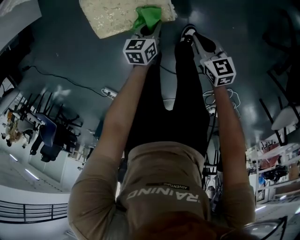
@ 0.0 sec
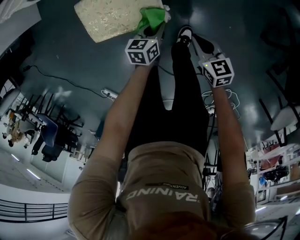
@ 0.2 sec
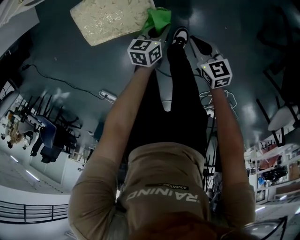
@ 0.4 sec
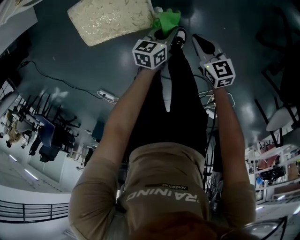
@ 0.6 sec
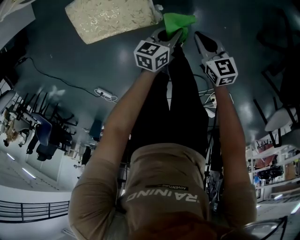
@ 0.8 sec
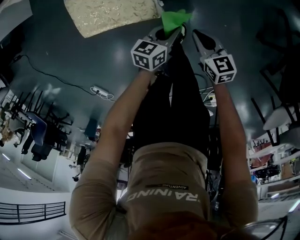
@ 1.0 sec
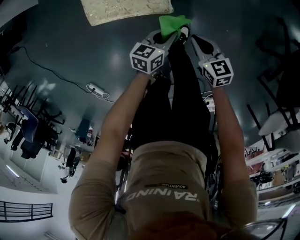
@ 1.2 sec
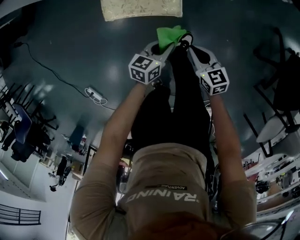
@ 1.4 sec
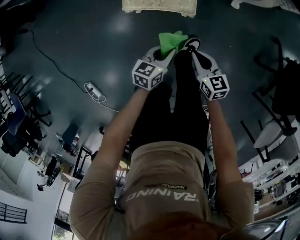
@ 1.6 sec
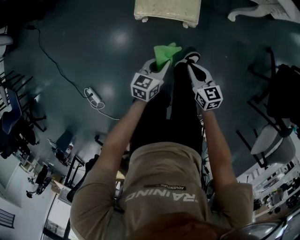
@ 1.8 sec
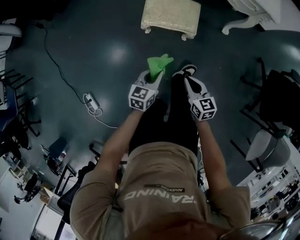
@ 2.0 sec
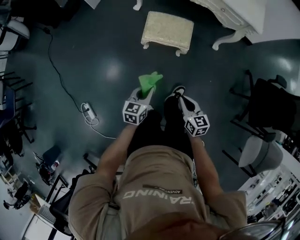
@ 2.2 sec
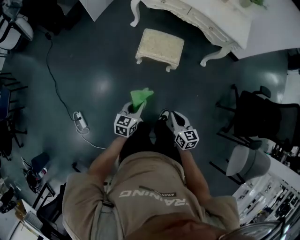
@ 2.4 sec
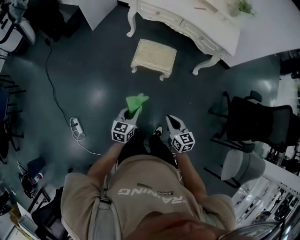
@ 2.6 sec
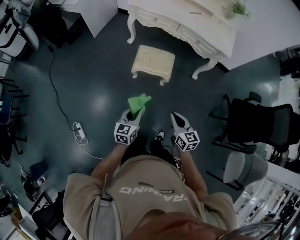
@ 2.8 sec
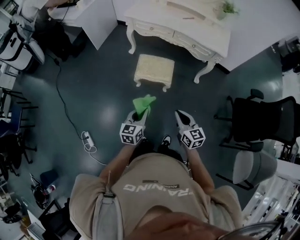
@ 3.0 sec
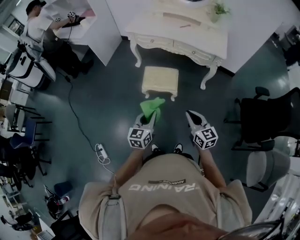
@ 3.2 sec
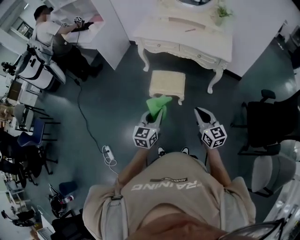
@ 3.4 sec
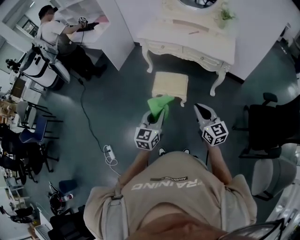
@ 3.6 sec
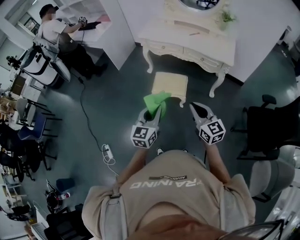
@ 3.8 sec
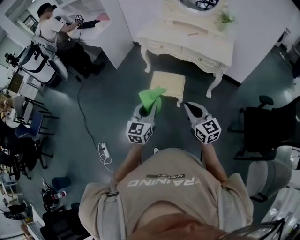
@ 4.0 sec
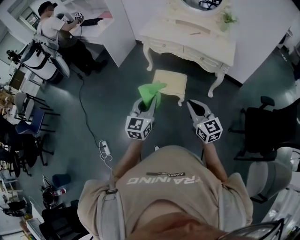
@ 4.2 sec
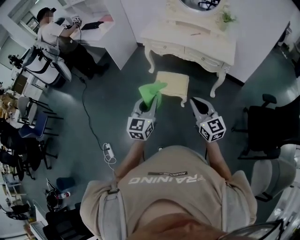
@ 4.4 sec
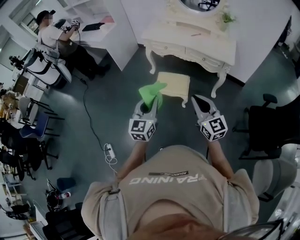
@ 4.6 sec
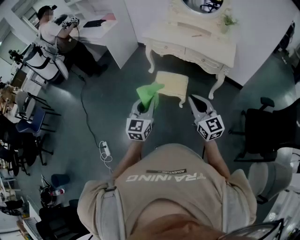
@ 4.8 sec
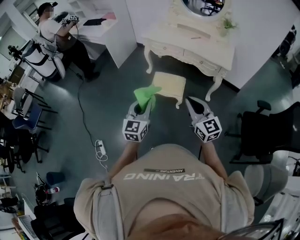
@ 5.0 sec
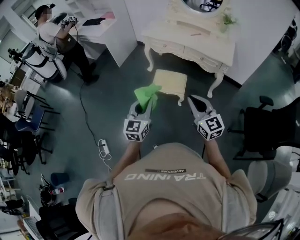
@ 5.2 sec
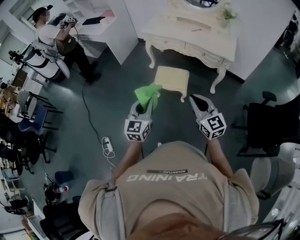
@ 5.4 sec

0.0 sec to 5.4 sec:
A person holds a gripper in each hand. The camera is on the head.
0.0 sec to 1.4 sec: The right gripper is displaced backward and to the left by approximately 15 cm, while the left gripper goes roughly 15 cm backward and upward.
1.4 sec to 2.8 sec: The left gripper travels upward, backward and to the left by about 60 cm, and changes its angle by roughly 30 degrees. Meanwhile the right gripper travels upward and backward by about 50 cm.
2.8 sec to 4.0 sec: Both grippers move upward, approximately 20 cm. The right gripper turns by about 20 degrees, while the left gripper rotates some 20 degrees.
4.0 sec to 5.4 sec: The left gripper changes place by some 5 cm.

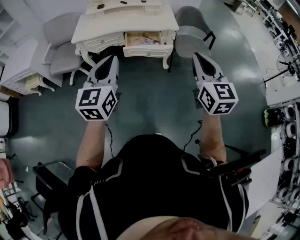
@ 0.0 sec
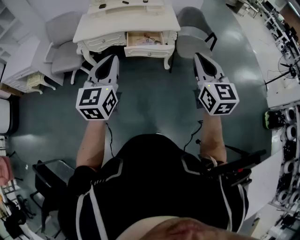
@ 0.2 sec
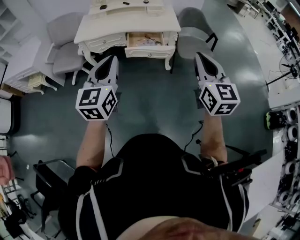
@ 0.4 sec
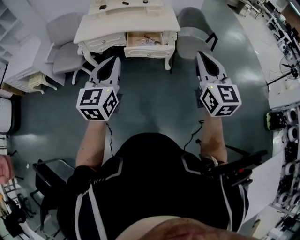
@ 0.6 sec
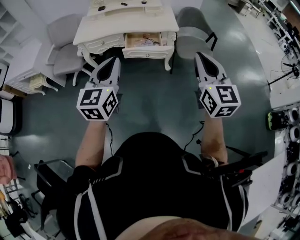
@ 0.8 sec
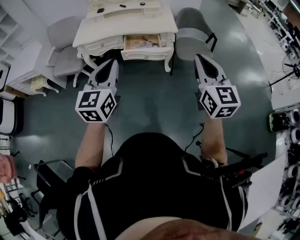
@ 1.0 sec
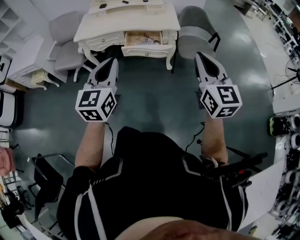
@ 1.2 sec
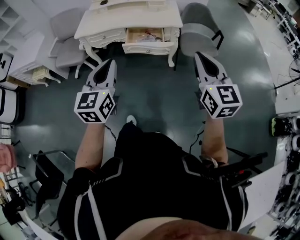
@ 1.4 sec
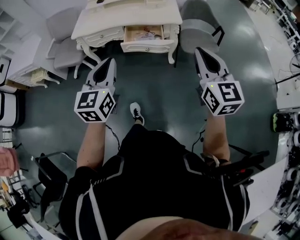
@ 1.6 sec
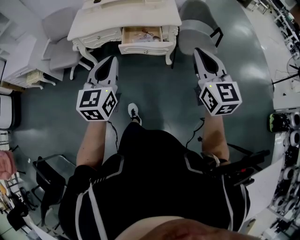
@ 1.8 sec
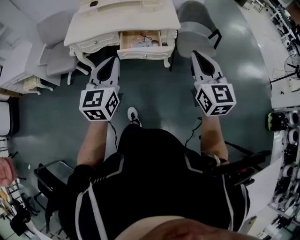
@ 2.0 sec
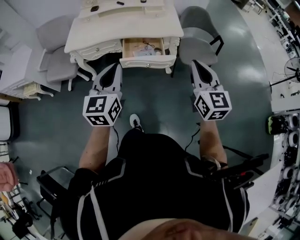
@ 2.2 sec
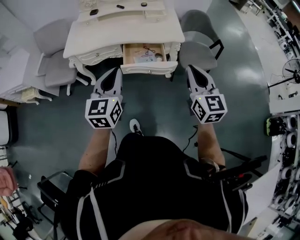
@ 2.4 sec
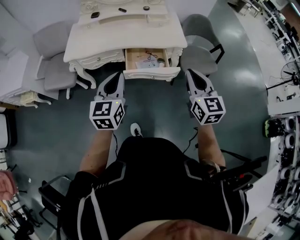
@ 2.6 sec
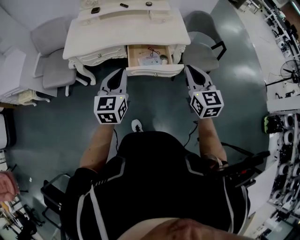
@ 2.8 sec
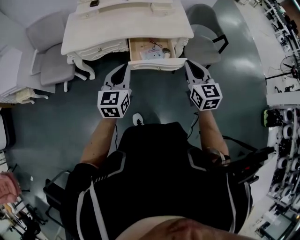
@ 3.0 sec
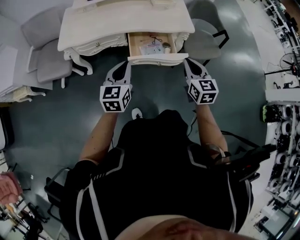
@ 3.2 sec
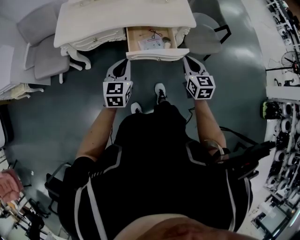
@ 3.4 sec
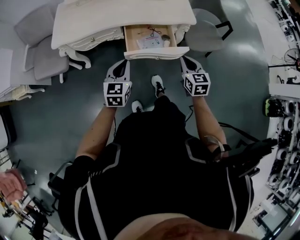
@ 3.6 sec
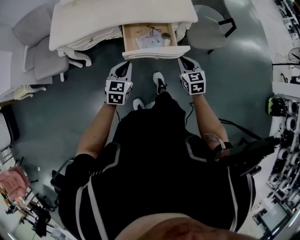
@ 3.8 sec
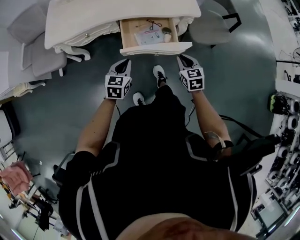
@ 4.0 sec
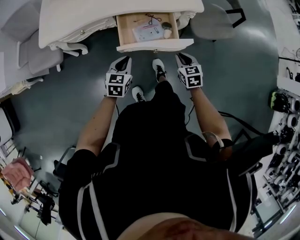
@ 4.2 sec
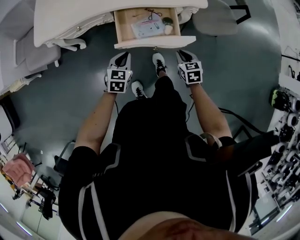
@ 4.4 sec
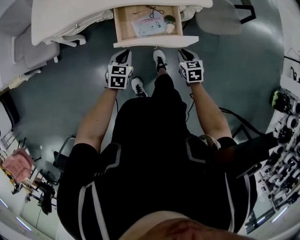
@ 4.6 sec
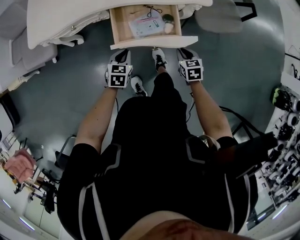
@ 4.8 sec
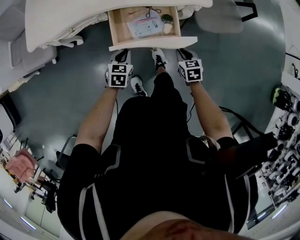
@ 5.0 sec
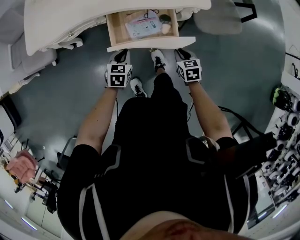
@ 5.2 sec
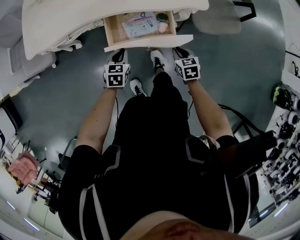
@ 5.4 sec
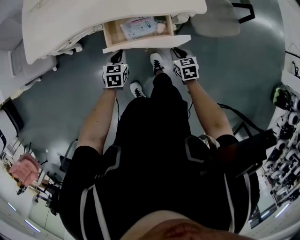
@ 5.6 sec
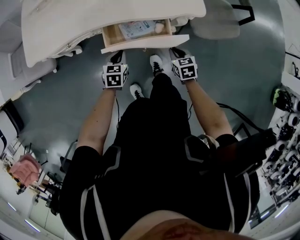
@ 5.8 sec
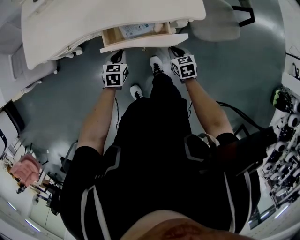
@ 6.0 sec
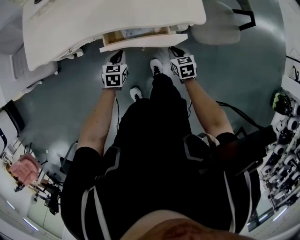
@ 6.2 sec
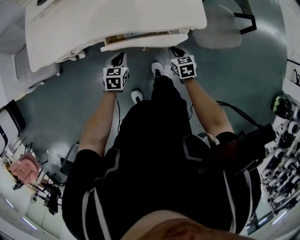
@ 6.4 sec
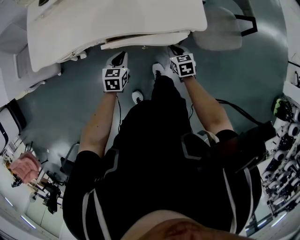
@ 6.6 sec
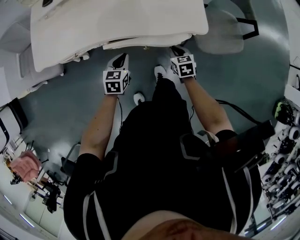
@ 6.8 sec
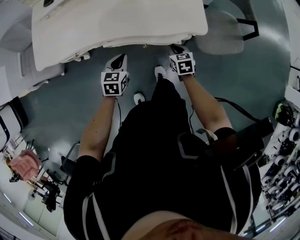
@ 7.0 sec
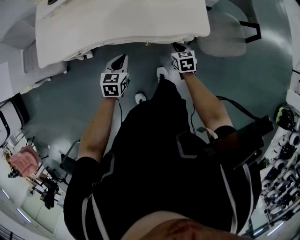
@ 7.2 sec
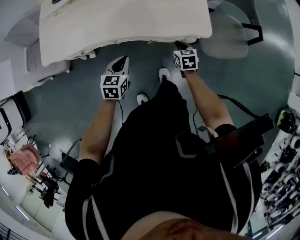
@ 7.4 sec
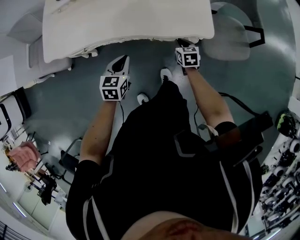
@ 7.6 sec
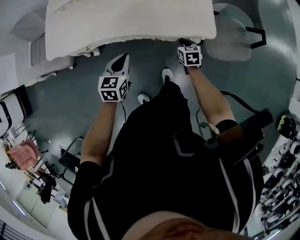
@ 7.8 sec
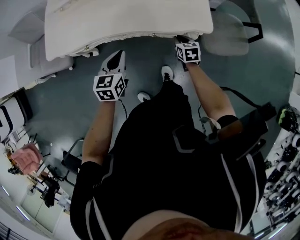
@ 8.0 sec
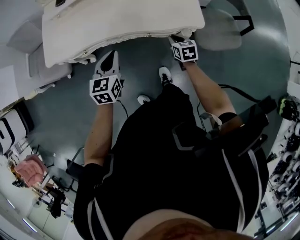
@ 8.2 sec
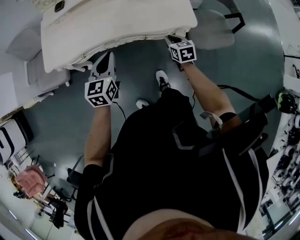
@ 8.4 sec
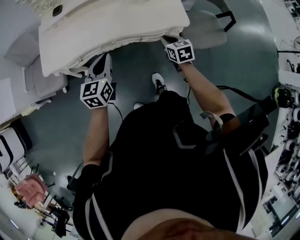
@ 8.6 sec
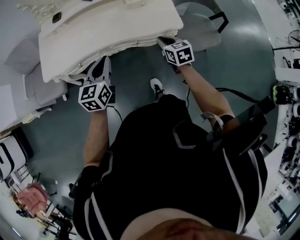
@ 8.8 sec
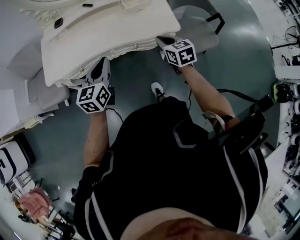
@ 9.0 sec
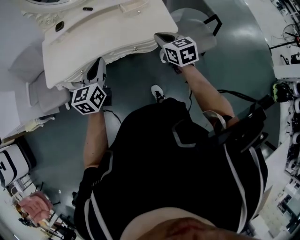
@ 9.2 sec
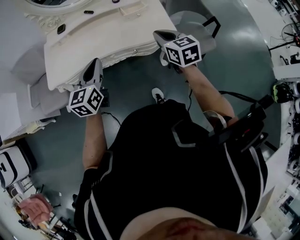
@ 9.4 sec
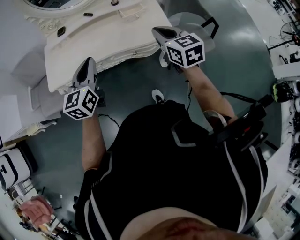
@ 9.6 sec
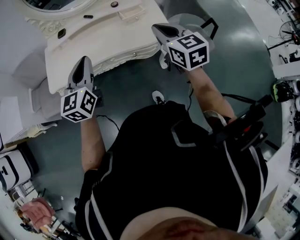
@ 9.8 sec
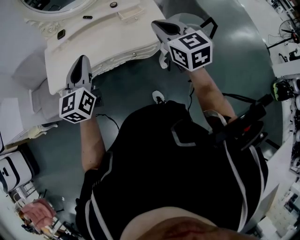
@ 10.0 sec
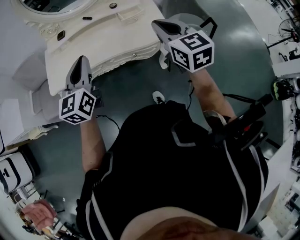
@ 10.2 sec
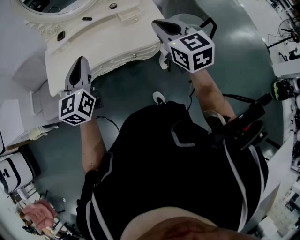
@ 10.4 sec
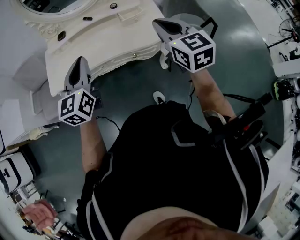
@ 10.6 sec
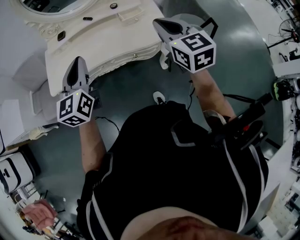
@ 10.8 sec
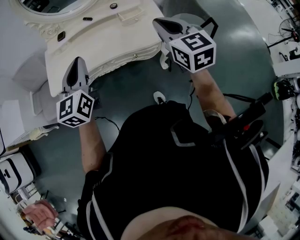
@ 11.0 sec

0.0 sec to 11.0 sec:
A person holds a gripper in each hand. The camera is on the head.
0.0 sec to 1.6 sec: Both grippers move to the right, some 5 cm.
1.6 sec to 3.2 sec: Both grippers travel together forward, downward and to the left, about 35 cm. The right gripper changes its angle by some 20 degrees.
3.2 sec to 4.8 sec: The grippers both shift downward by about 30 cm. The left gripper angles its fingers downward, by about 30 degrees; the right gripper tips its fingers downward by some 30 degrees.
4.8 sec to 6.2 sec: The two grippers go approximately 10 cm forward.
6.2 sec to 7.8 sec: The right gripper is displaced forward by roughly 10 cm. The left gripper shifts approximately 15 cm upward.
7.8 sec to 9.4 sec: The left gripper heads upward, covering roughly 20 cm, and changes its angle by about 30 degrees, while the right gripper shifts roughly 35 cm upward, and turns by some 30 degrees.
9.4 sec to 11.0 sec: Both grippers move upward, about 10 cm.

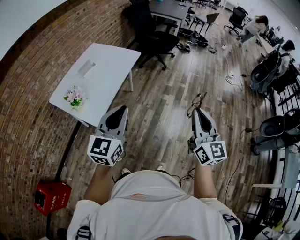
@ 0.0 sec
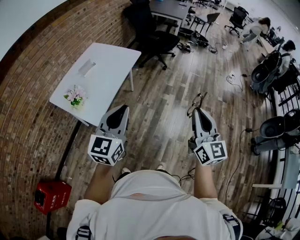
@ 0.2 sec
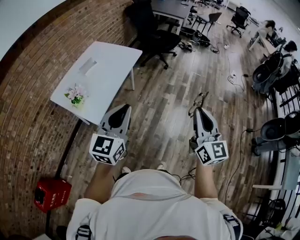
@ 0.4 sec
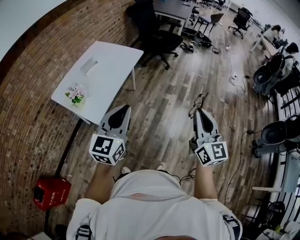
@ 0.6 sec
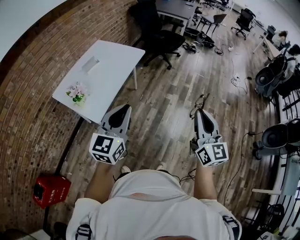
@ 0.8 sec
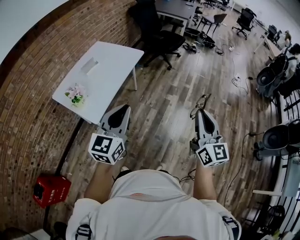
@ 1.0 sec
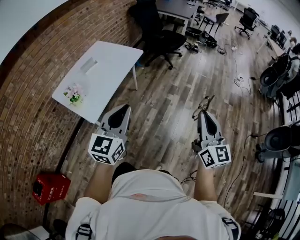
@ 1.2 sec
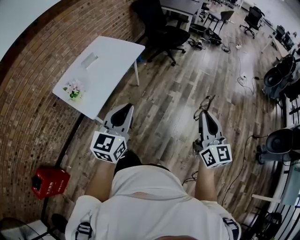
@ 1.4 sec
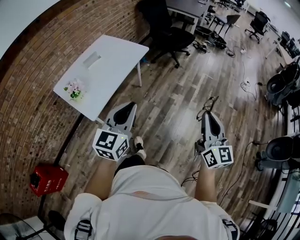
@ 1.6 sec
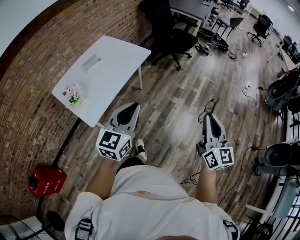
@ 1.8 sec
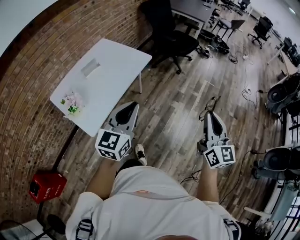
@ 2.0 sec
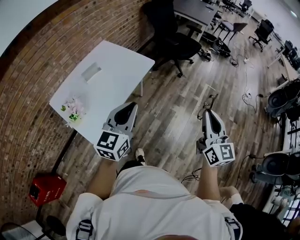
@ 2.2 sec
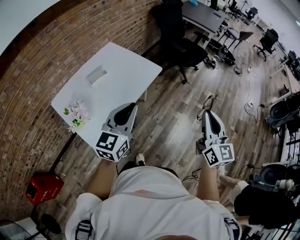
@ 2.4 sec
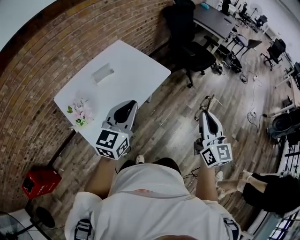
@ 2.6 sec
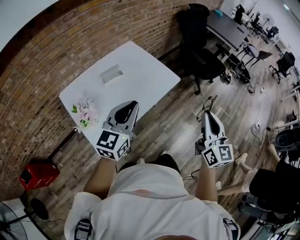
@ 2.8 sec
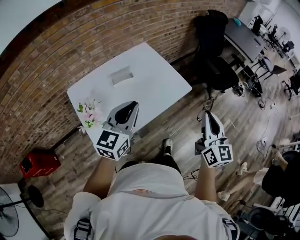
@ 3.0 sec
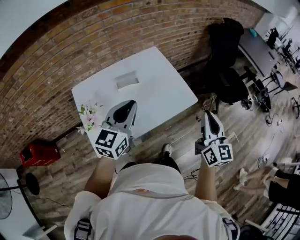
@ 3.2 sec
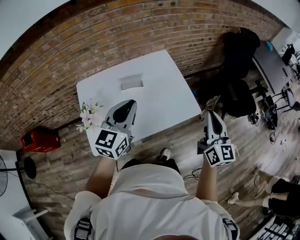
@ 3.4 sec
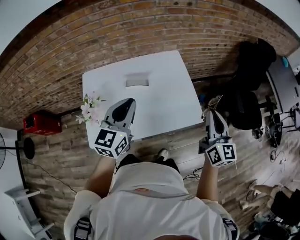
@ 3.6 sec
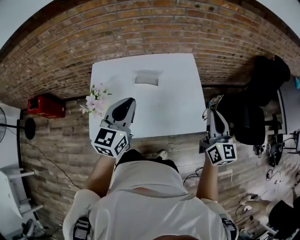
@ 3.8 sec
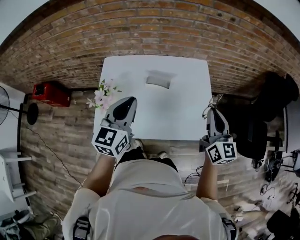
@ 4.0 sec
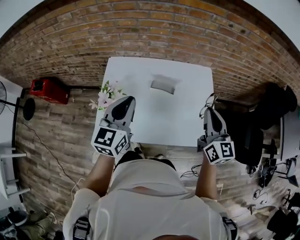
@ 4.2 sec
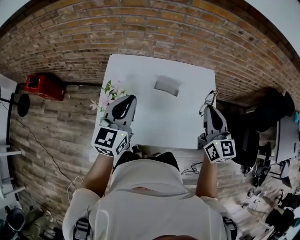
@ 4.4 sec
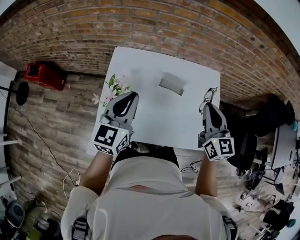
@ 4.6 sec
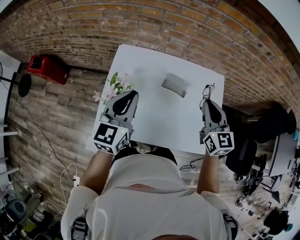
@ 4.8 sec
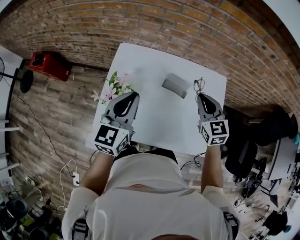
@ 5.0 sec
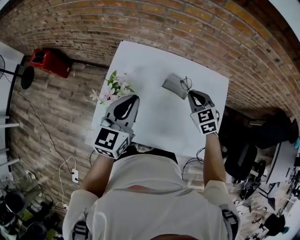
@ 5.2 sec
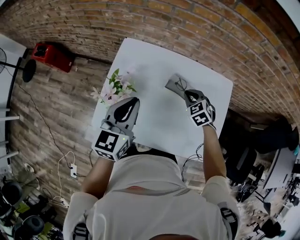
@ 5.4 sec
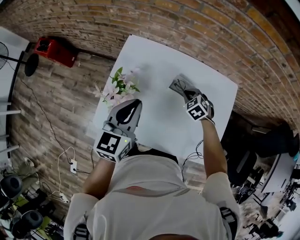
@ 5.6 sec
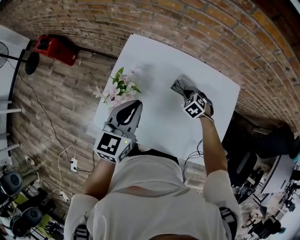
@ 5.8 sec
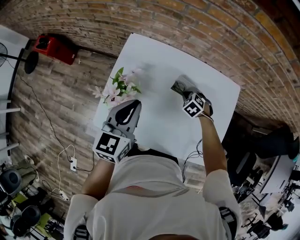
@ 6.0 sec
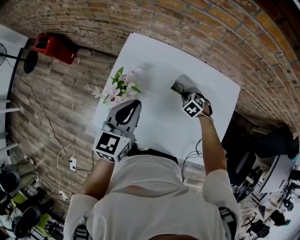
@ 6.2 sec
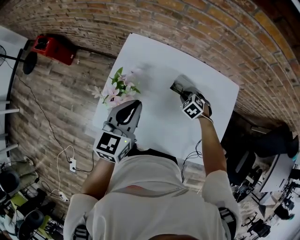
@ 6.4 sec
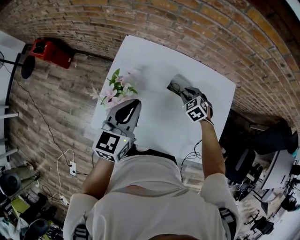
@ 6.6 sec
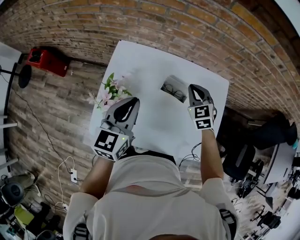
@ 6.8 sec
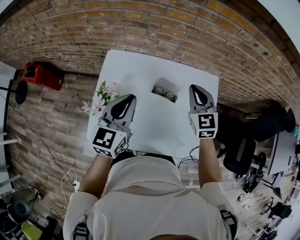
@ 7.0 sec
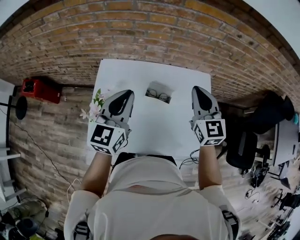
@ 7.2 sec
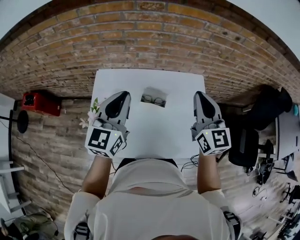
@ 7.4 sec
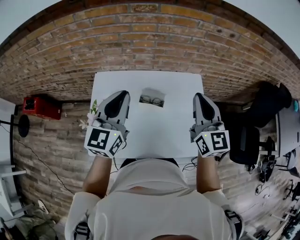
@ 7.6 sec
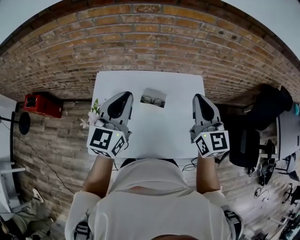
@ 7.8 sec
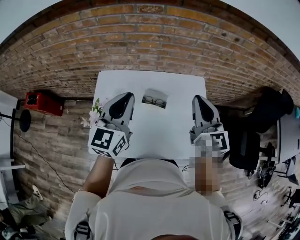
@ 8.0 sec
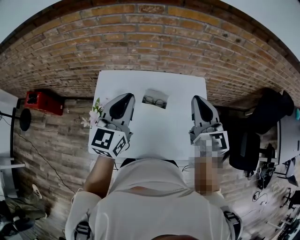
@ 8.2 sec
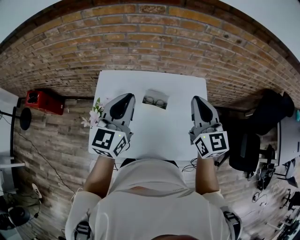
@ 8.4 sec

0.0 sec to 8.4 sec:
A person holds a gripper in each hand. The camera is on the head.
0.0 sec to 1.4 sec: Both grippers travel together to the right, about 10 cm.
1.4 sec to 2.8 sec: The two grippers go roughly 40 cm forward and to the left.
2.8 sec to 4.2 sec: The left gripper changes place by approximately 20 cm, and turns by about 50 degrees, while the right gripper shifts by some 40 cm, and turns by some 50 degrees.
4.2 sec to 5.6 sec: The left gripper heads downward and forward, covering roughly 10 cm. The right gripper moves downward, forward and to the left, approximately 40 cm, and tilts its fingers roughly 60 degrees downward.
5.6 sec to 7.0 sec: The right gripper moves upward, some 25 cm, and tilts its fingers some 40 degrees upward. Meanwhile the left gripper shifts by roughly 5 cm.
7.0 sec to 8.4 sec: The right gripper is displaced upward, backward and to the right by some 15 cm, and swivels some 30 degrees. Meanwhile the left gripper shifts about 10 cm upward and to the right.
